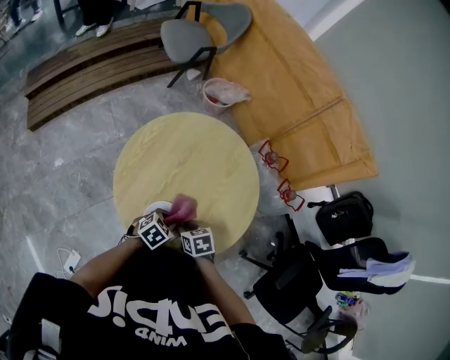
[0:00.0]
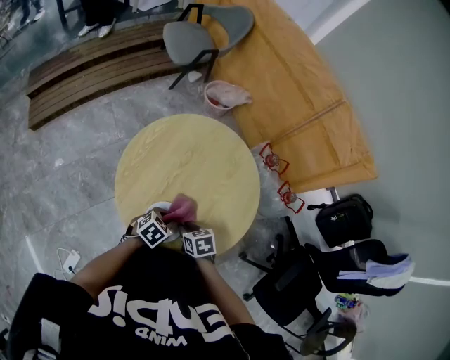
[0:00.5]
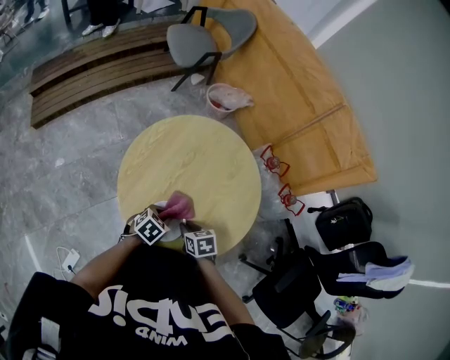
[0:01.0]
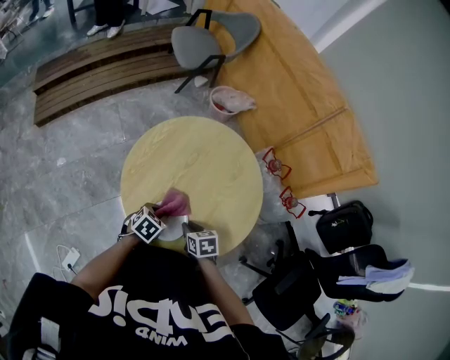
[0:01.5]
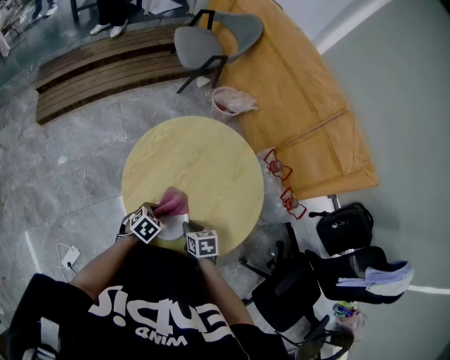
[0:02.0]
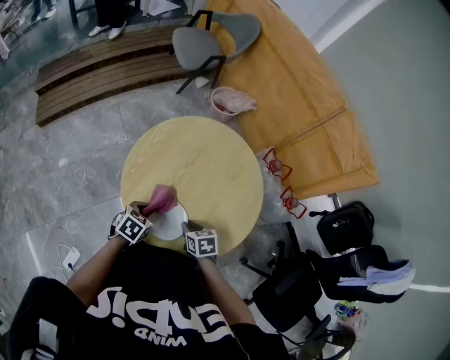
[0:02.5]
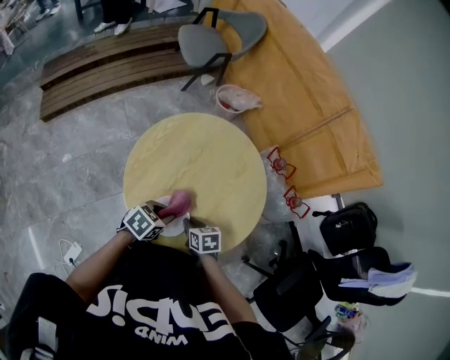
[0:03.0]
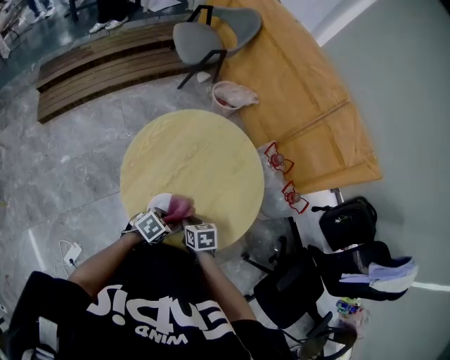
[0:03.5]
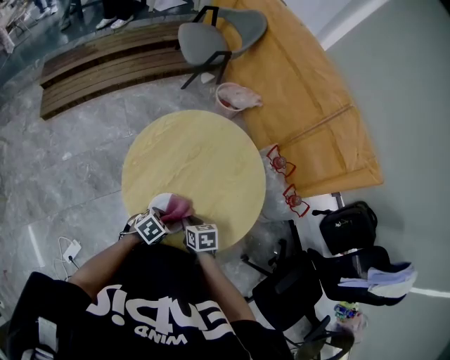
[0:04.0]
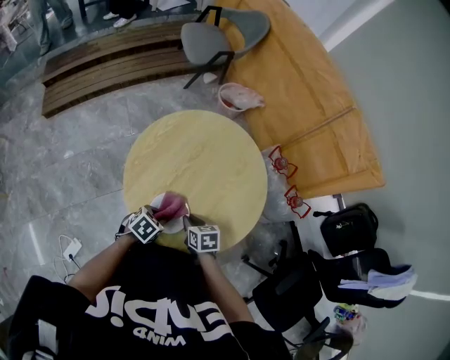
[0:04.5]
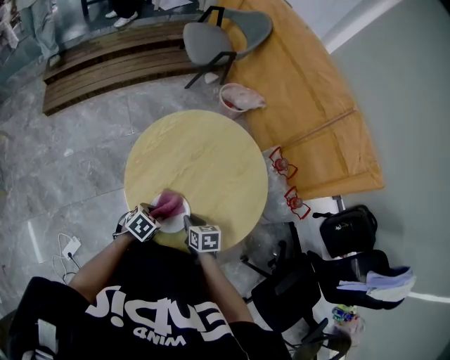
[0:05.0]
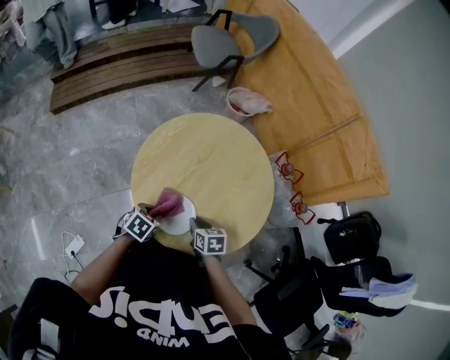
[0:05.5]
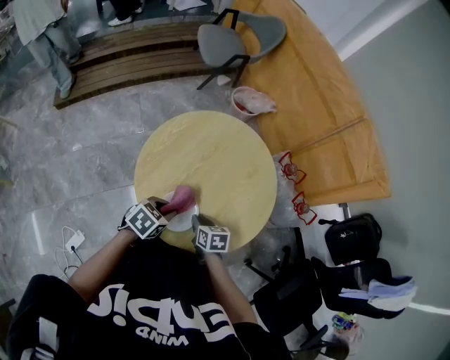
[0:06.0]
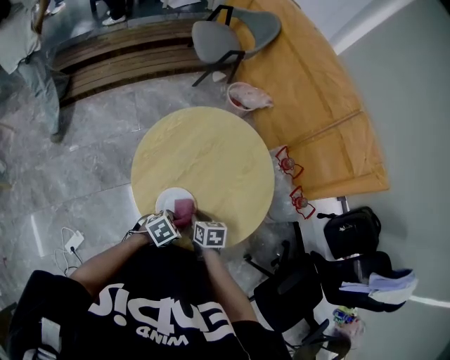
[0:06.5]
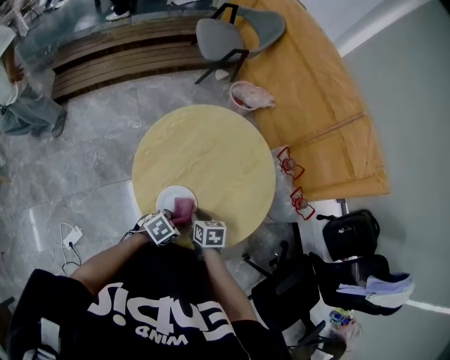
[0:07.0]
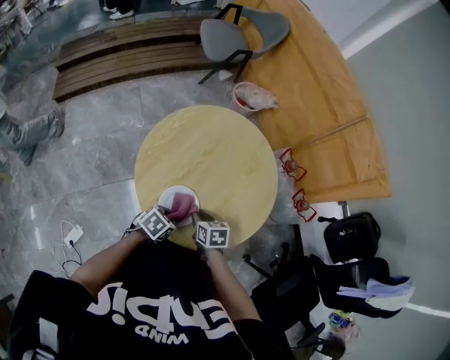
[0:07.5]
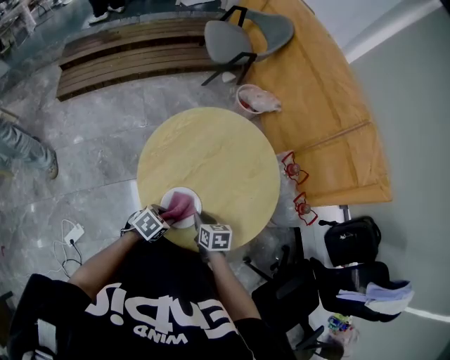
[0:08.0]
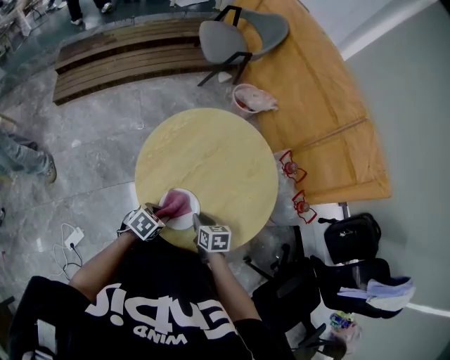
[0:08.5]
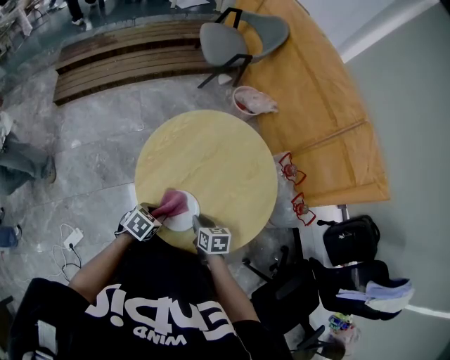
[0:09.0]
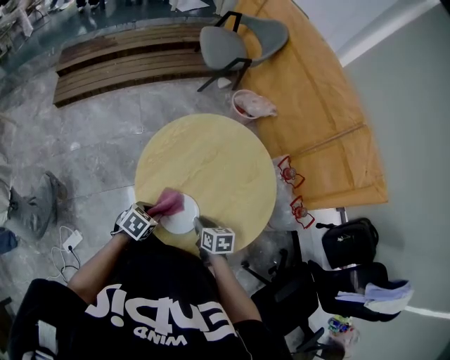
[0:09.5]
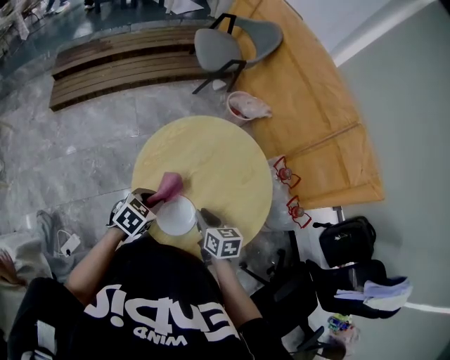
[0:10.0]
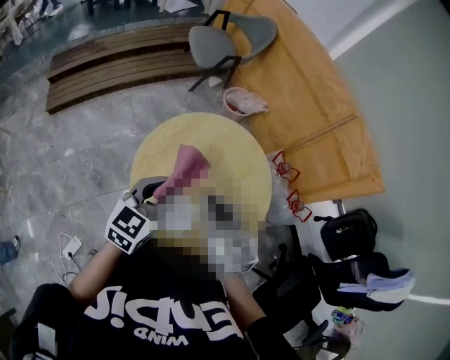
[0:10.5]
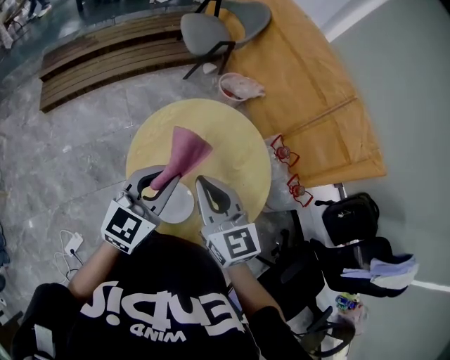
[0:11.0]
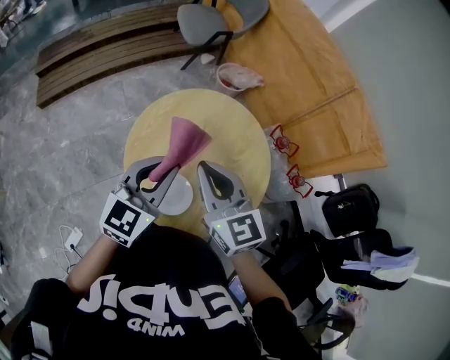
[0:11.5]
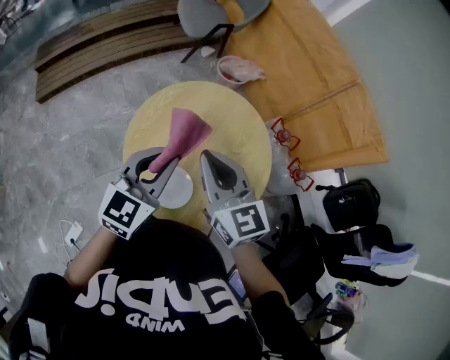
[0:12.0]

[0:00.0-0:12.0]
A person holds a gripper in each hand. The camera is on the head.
0:00.0 to 0:02.0: The left gripper is displaced to the left by approximately 5 cm.
0:02.0 to 0:04.0: The left gripper shifts by approximately 5 cm.
0:04.0 to 0:06.0: The left gripper moves upward, roughly 10 cm.
0:06.0 to 0:08.0: The left gripper is displaced downward by some 5 cm.
0:08.0 to 0:10.0: The right gripper shifts approximately 10 cm upward, while the left gripper moves upward, forward and to the left, approximately 15 cm.
0:10.0 to 0:12.0: Both grippers travel together upward, roughly 20 cm. The left gripper tips its fingers upward by roughly 40 degrees, while the right gripper changes its angle by roughly 40 degrees.

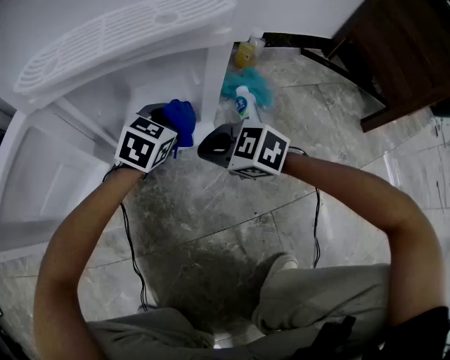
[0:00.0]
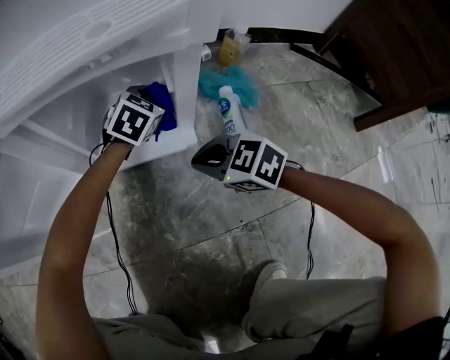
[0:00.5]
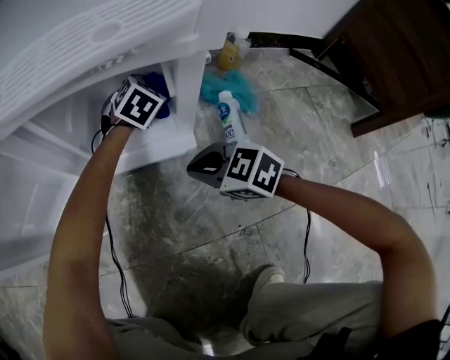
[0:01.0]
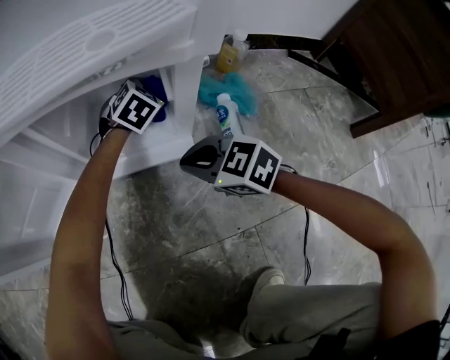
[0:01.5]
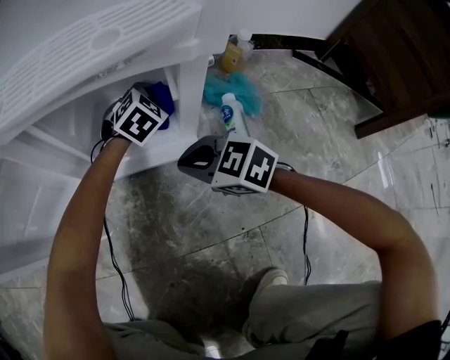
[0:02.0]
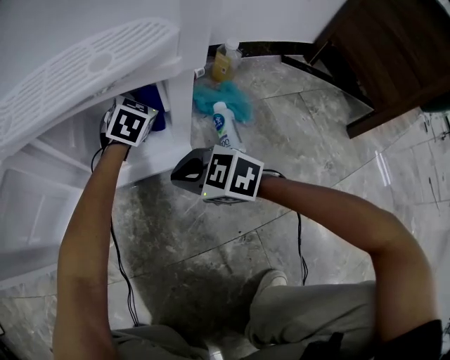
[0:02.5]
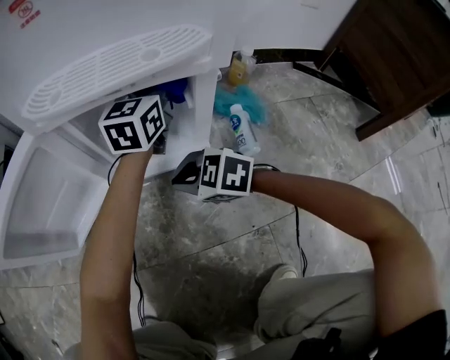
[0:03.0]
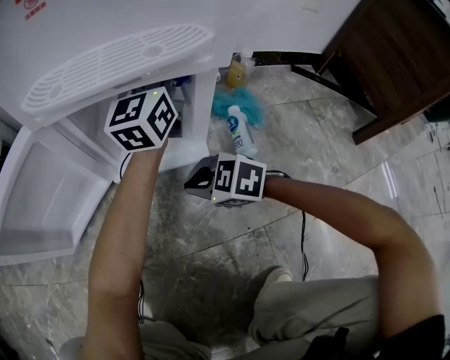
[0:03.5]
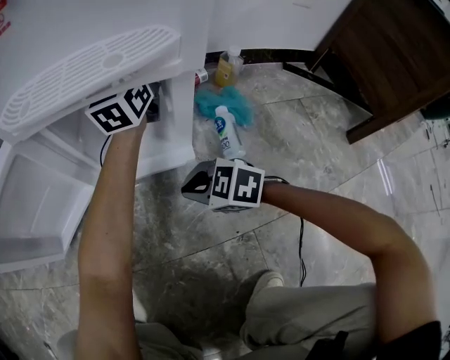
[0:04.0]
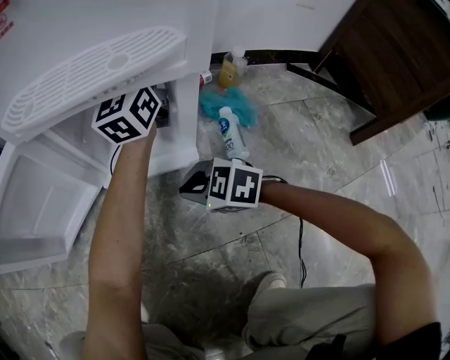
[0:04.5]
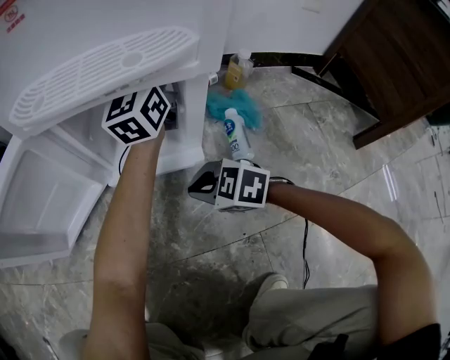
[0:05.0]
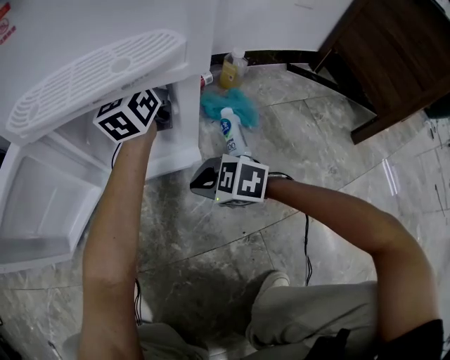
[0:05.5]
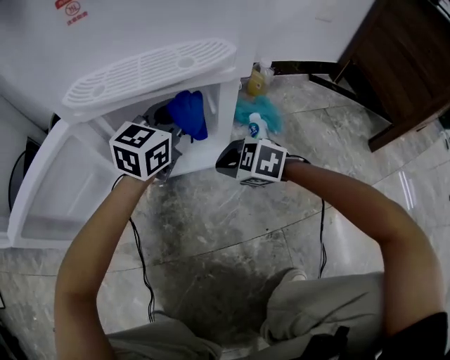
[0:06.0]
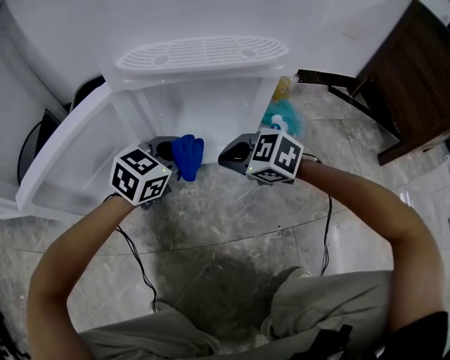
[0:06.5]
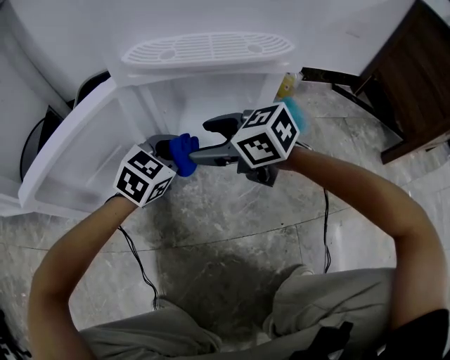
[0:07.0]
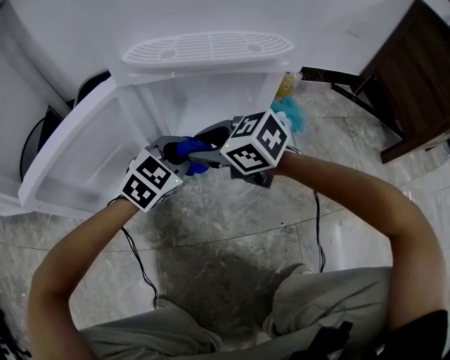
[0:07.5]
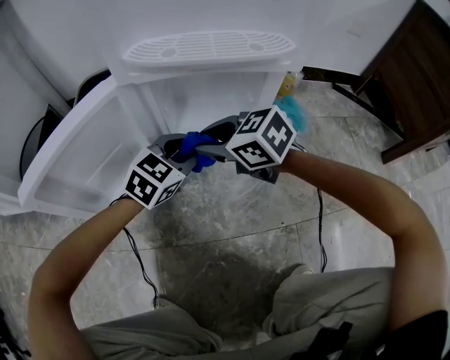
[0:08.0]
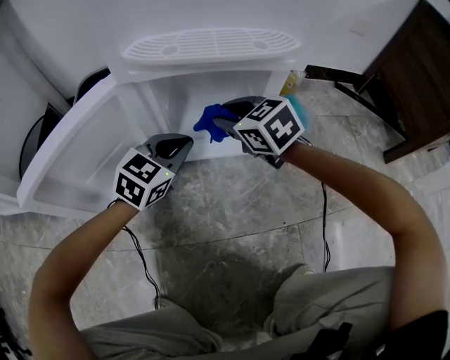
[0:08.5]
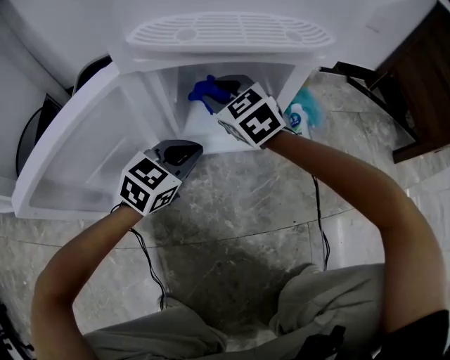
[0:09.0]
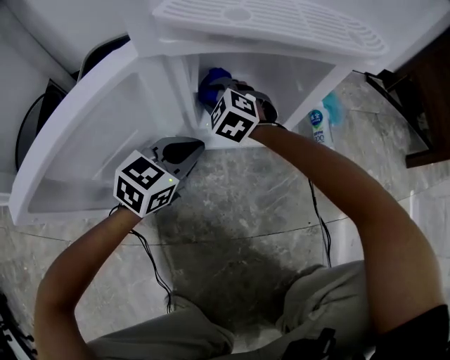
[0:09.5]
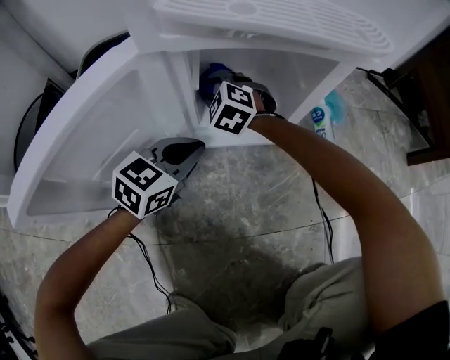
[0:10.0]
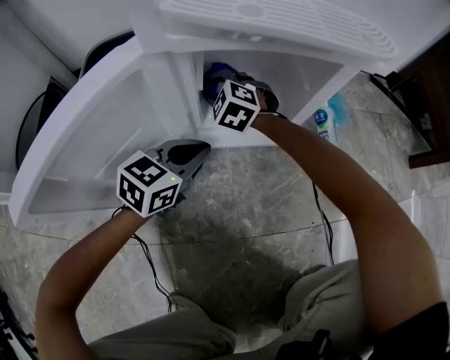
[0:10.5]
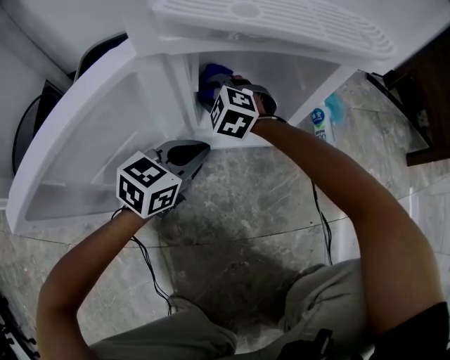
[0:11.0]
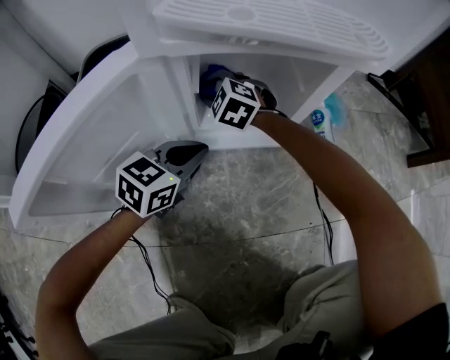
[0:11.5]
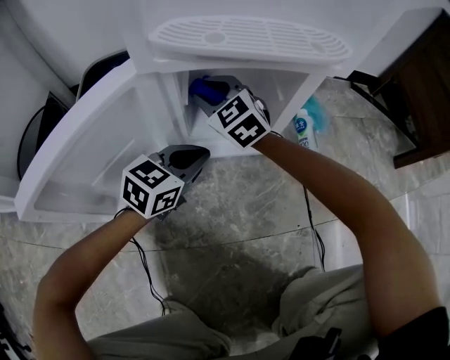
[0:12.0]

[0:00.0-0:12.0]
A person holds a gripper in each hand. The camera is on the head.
0:00.0 to 0:02.0: The left gripper is displaced forward by some 10 cm, and swivels about 20 degrees.
0:02.0 to 0:04.0: The left gripper goes approximately 25 cm upward, and tips its fingers upward by about 50 degrees, while the right gripper shifts some 5 cm backward.
0:04.0 to 0:06.0: The left gripper is displaced backward, downward and to the left by about 15 cm, and turns by some 30 degrees. The right gripper shifts by roughly 5 cm.
0:06.0 to 0:08.0: The left gripper shifts some 15 cm to the left, downward and backward, and rotates about 20 degrees. The right gripper moves to the left and upward, some 15 cm, swivels about 20 degrees, and opens and closes again.
0:08.0 to 0:10.0: The left gripper is displaced to the left by roughly 5 cm, and closes; the right gripper moves forward, downward and to the left, some 20 cm, and swivels approximately 50 degrees.
0:10.0 to 0:12.0: The right gripper heads upward, covering some 10 cm, and rotates roughly 30 degrees.

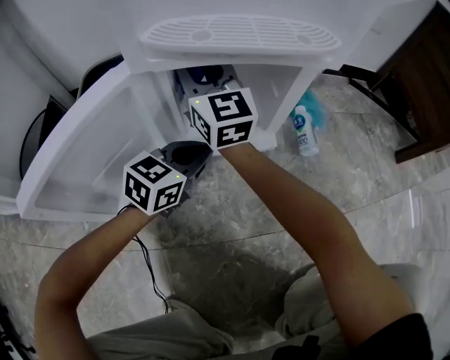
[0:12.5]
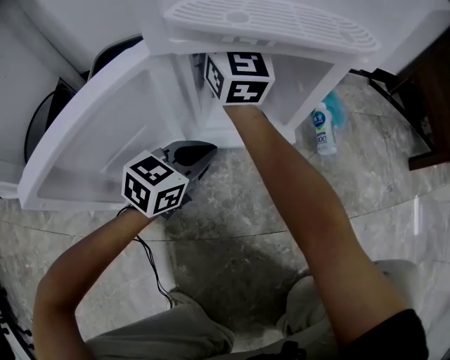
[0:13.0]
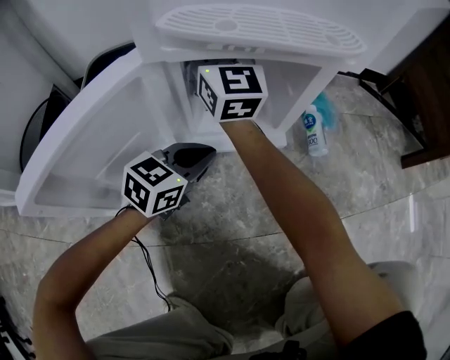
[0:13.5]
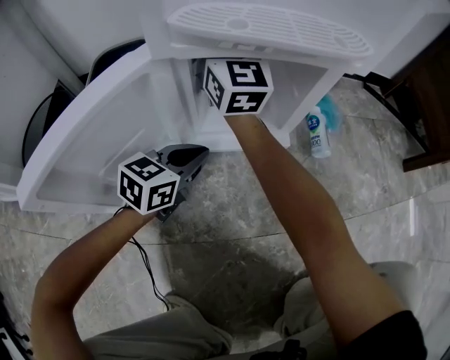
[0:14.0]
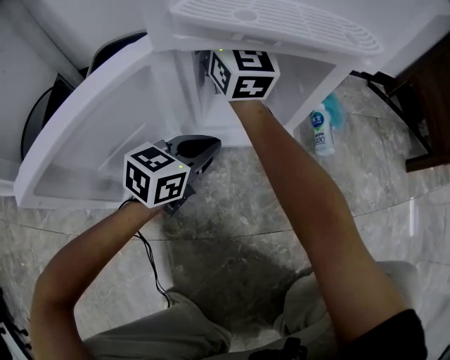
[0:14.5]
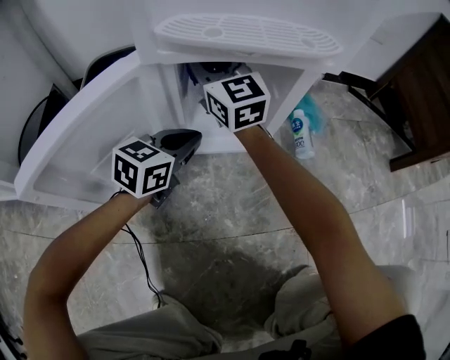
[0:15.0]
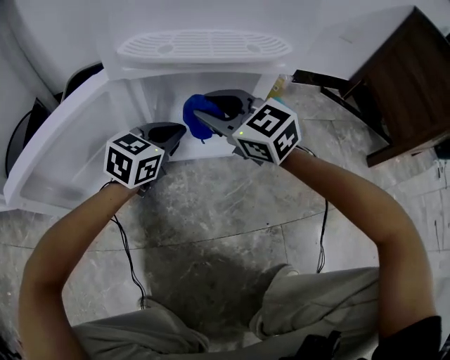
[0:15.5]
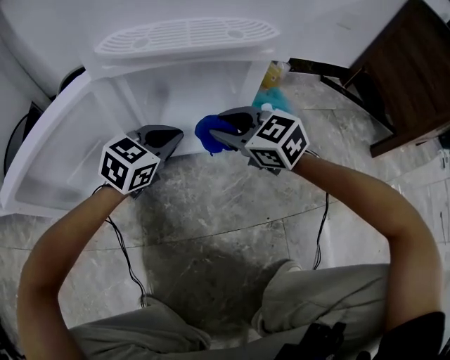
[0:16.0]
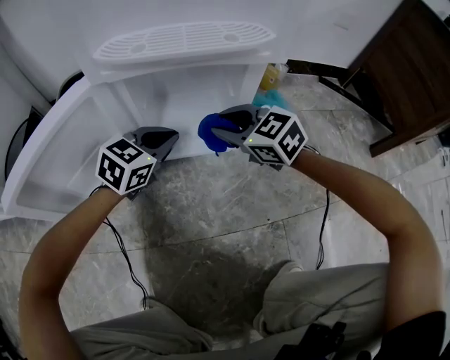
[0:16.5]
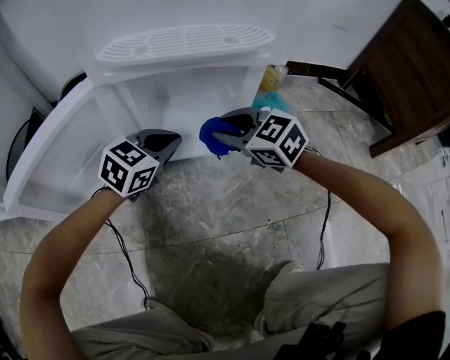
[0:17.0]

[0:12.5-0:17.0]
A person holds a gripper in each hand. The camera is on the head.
0:12.5 to 0:14.5: The right gripper moves forward, some 5 cm.
0:14.5 to 0:17.0: The left gripper changes place by approximately 5 cm, and turns by roughly 20 degrees, while the right gripper goes approximately 25 cm backward, to the right and downward, and points its fingers about 50 degrees further downward.
